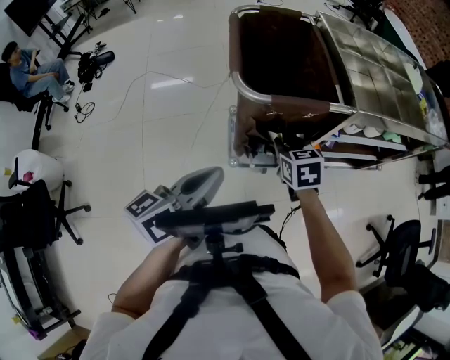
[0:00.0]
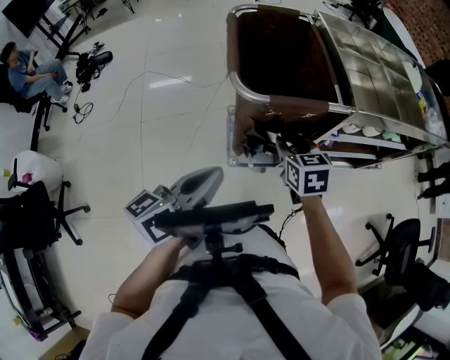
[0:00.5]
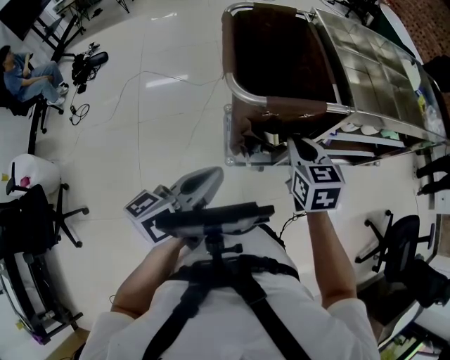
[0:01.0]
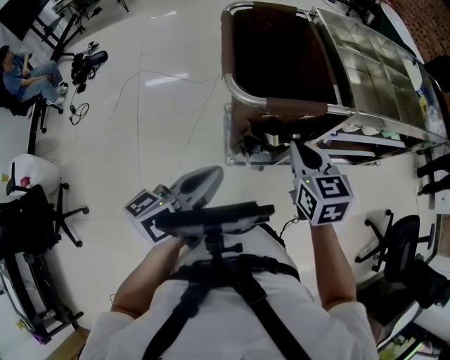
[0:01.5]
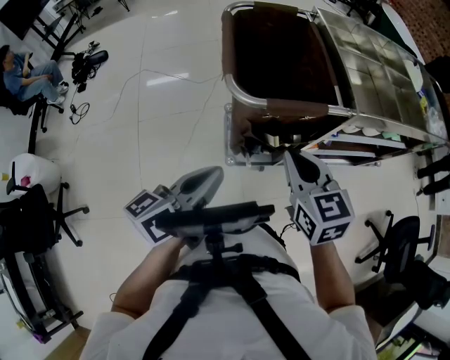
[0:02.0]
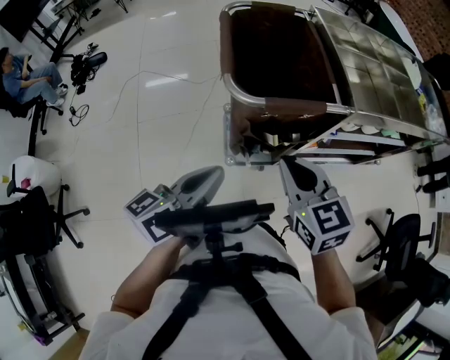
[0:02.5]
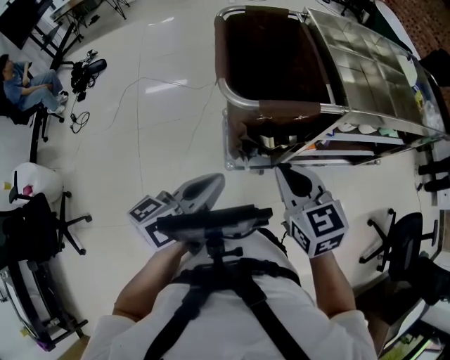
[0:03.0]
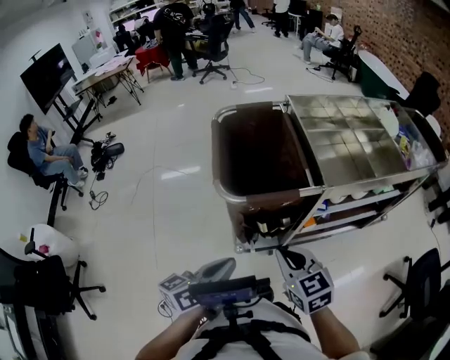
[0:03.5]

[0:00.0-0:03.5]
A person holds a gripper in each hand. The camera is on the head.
0:00.0 to 0:02.0: The right gripper moves upward and backward, some 15 cm, and closes its fingers.
0:02.0 to 0:03.5: The right gripper moves some 5 cm, while the left gripper shifts some 5 cm to the right.

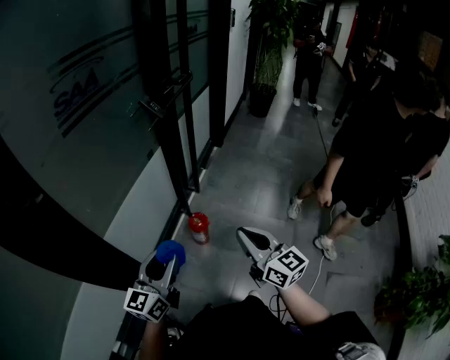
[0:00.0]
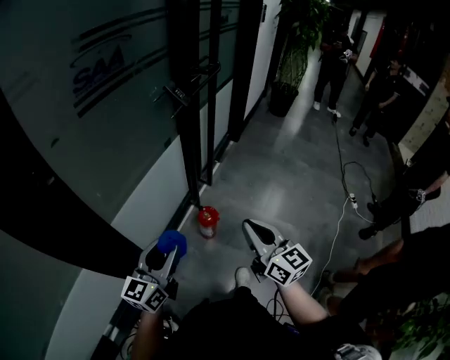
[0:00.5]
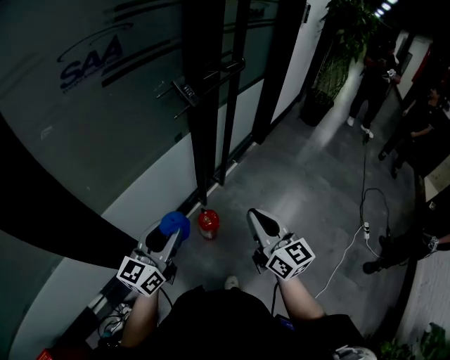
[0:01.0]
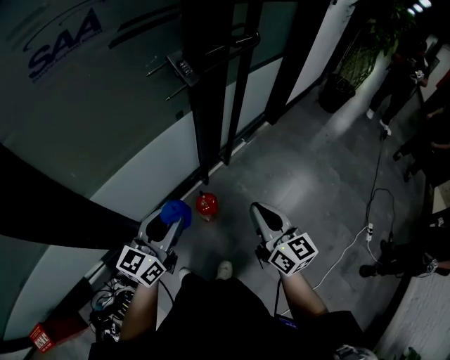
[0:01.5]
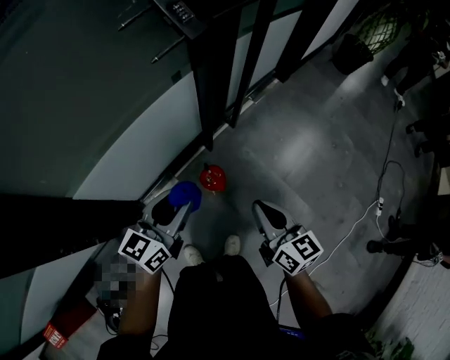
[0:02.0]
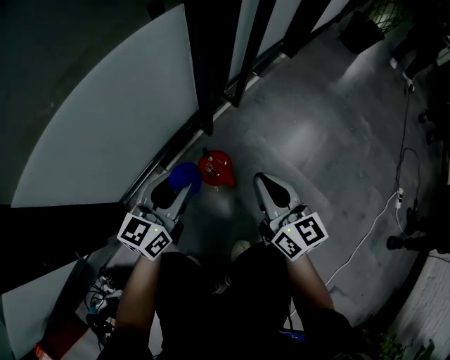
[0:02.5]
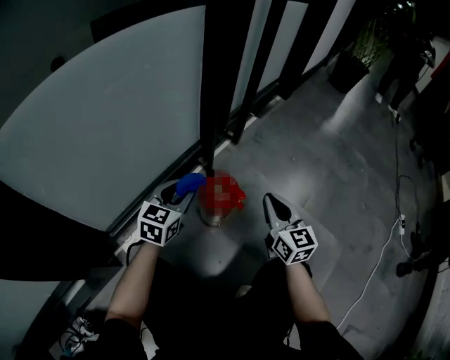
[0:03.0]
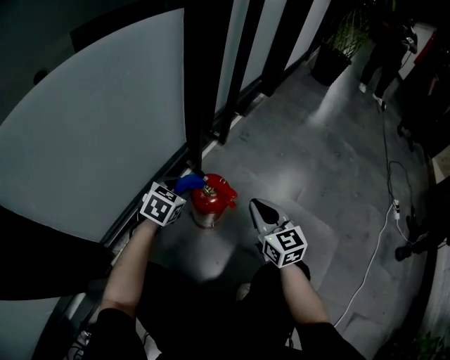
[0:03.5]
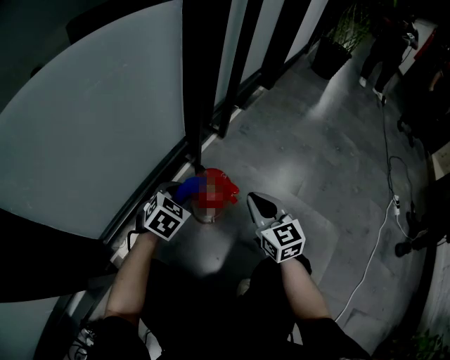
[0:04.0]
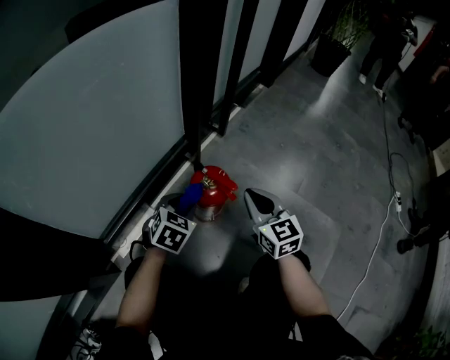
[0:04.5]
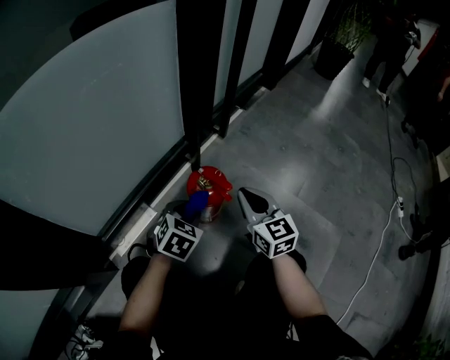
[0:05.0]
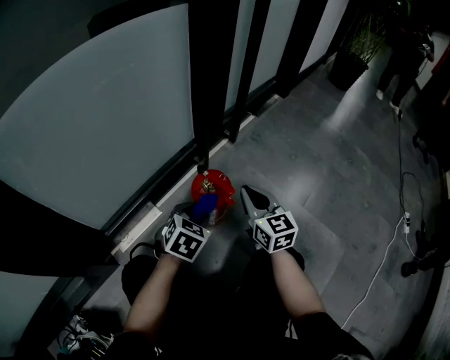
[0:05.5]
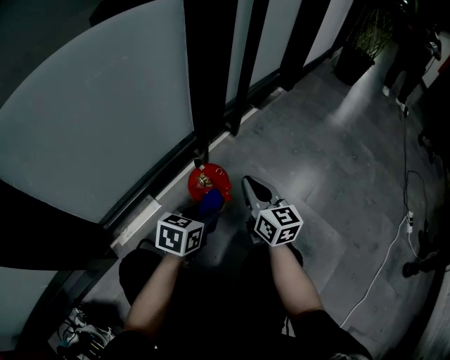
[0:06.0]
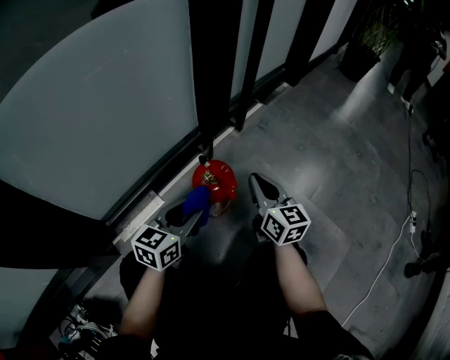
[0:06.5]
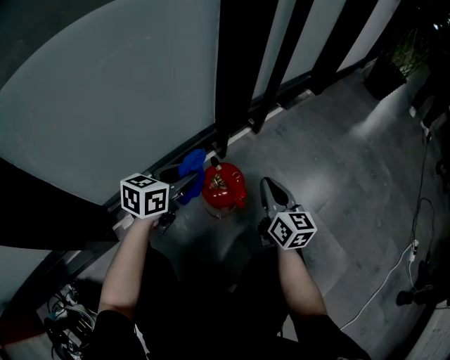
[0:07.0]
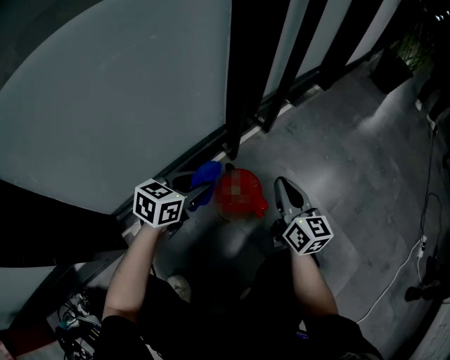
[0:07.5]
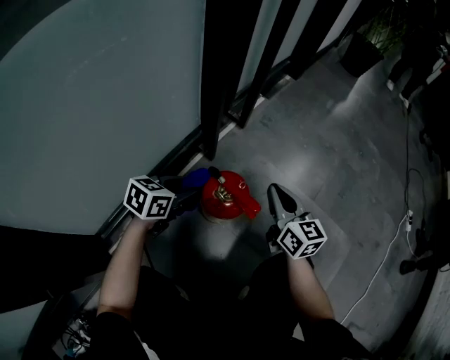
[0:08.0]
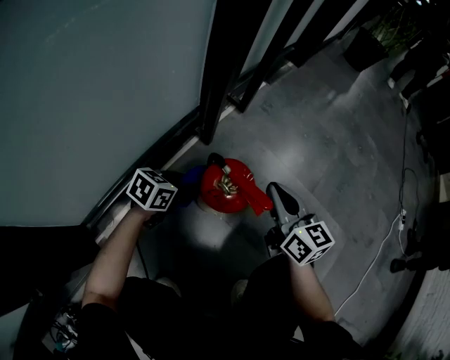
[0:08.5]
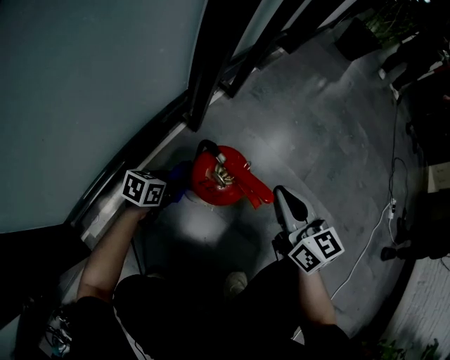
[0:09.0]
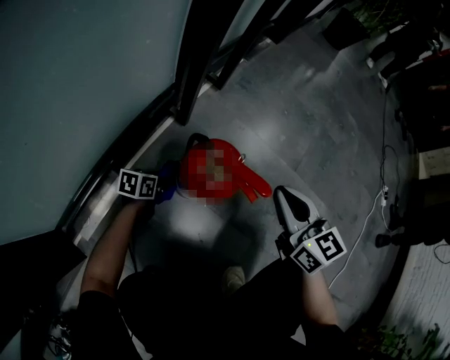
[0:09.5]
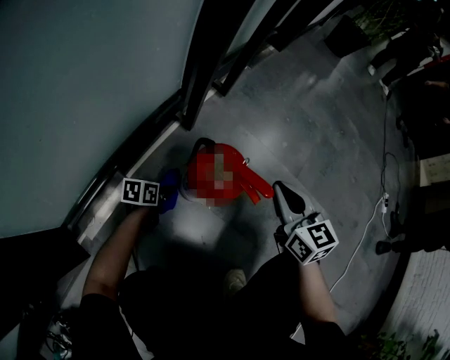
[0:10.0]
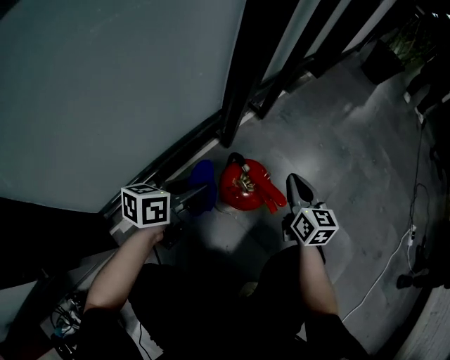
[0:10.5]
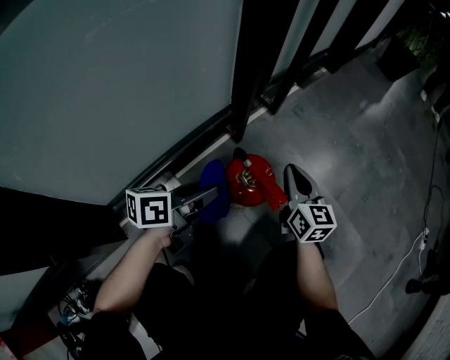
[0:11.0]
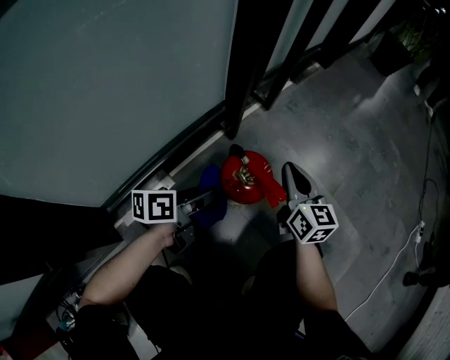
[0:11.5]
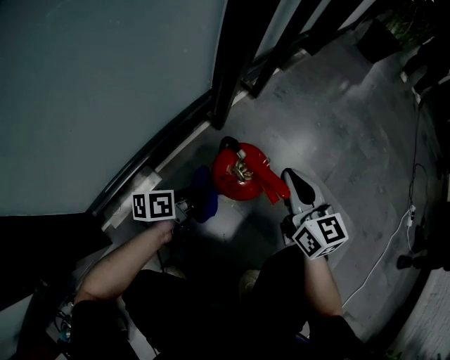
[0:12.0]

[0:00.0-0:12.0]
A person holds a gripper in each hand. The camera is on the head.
0:00.0 to 0:02.0: Both grippers move forward and downward, roughly 35 cm. The right gripper changes its angle by about 20 degrees.
0:02.0 to 0:04.0: Both grippers move downward, about 50 cm. The right gripper swivels some 30 degrees, while the left gripper angles its fingers downward, by approximately 40 degrees.
0:04.0 to 0:06.0: The left gripper moves to the right and backward, approximately 10 cm, and changes its angle by roughly 40 degrees.
0:06.0 to 0:08.0: The left gripper travels to the left and forward by some 15 cm. The right gripper shifts by roughly 5 cm.
0:08.0 to 0:10.0: The left gripper travels downward by about 25 cm, and turns by about 30 degrees.
0:10.0 to 0:12.0: The left gripper heads upward, covering roughly 15 cm, and turns by approximately 20 degrees.

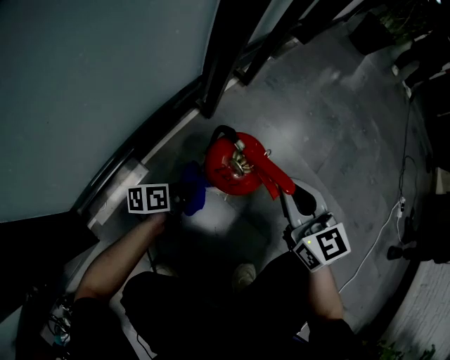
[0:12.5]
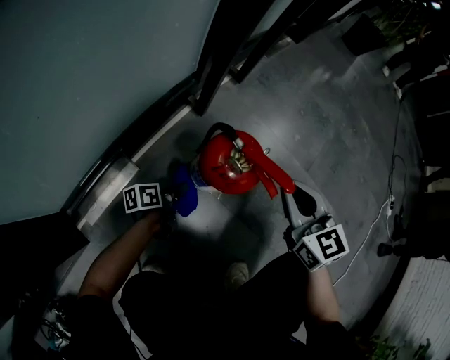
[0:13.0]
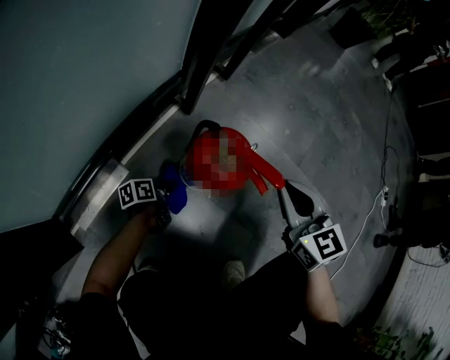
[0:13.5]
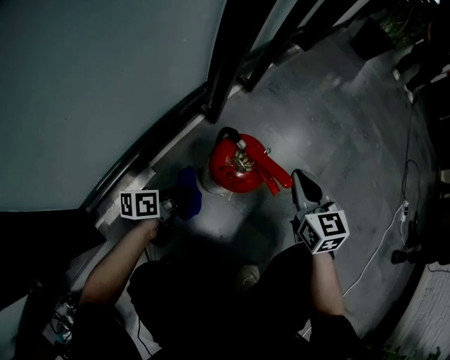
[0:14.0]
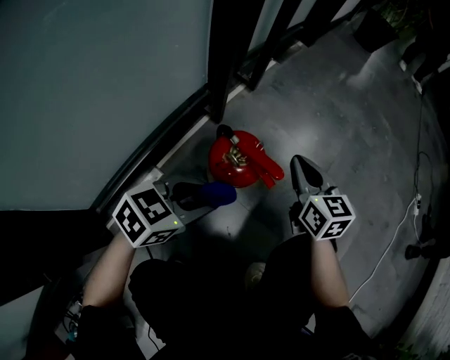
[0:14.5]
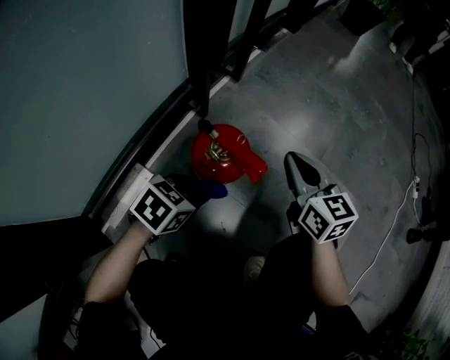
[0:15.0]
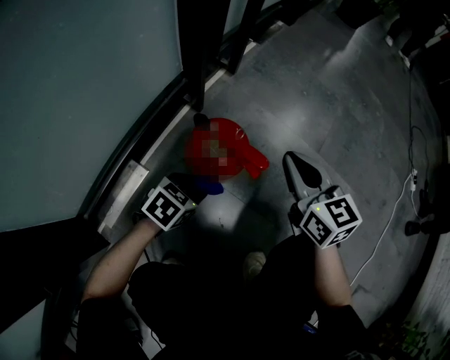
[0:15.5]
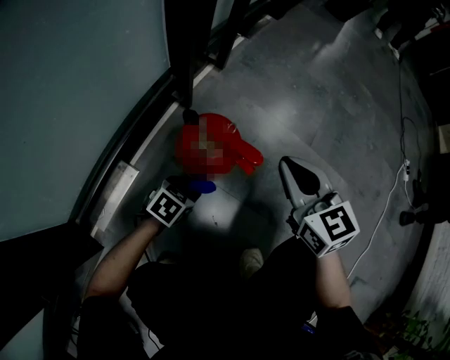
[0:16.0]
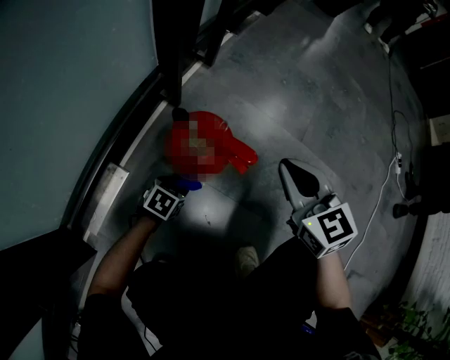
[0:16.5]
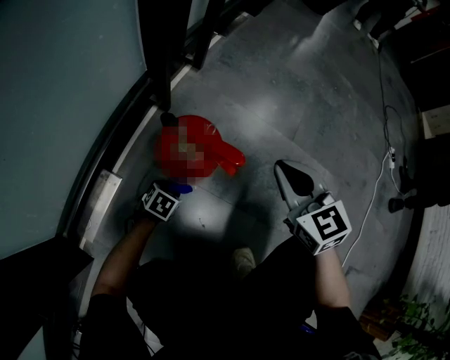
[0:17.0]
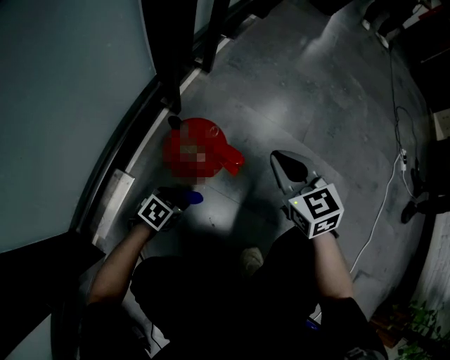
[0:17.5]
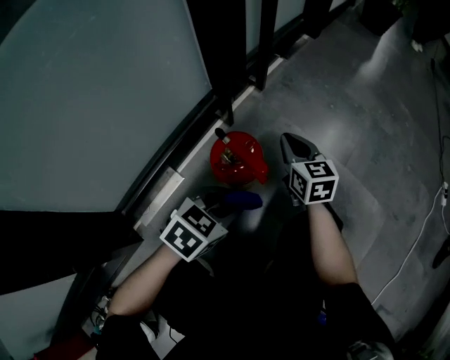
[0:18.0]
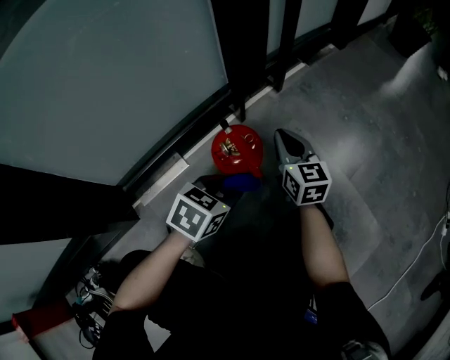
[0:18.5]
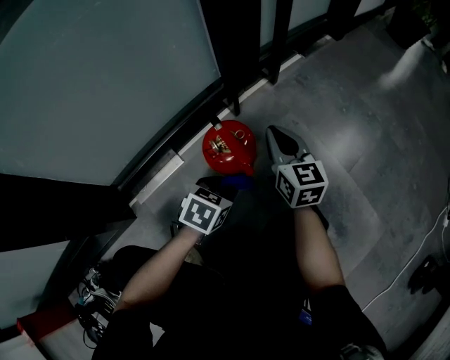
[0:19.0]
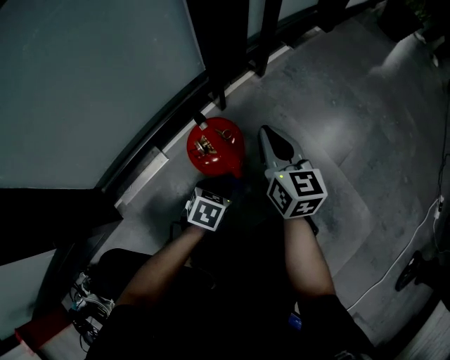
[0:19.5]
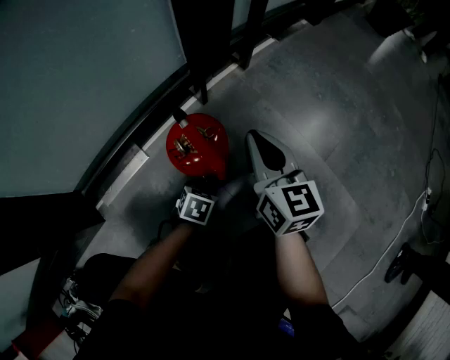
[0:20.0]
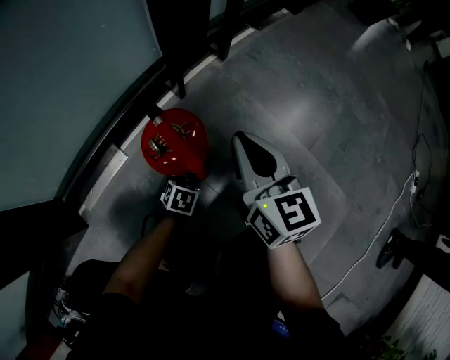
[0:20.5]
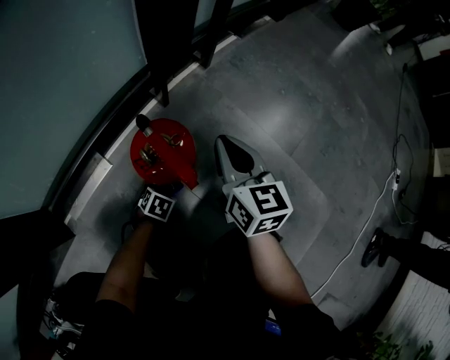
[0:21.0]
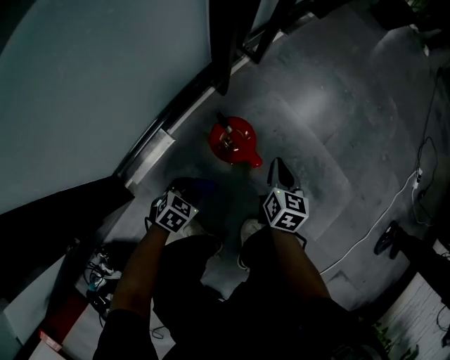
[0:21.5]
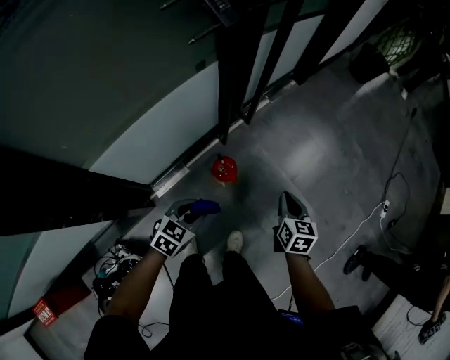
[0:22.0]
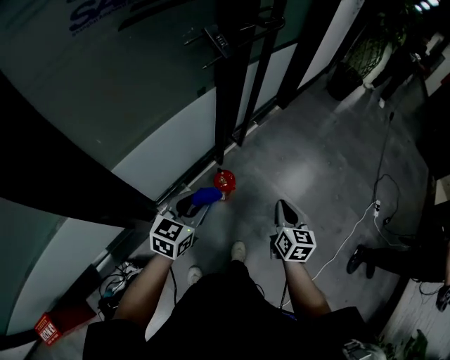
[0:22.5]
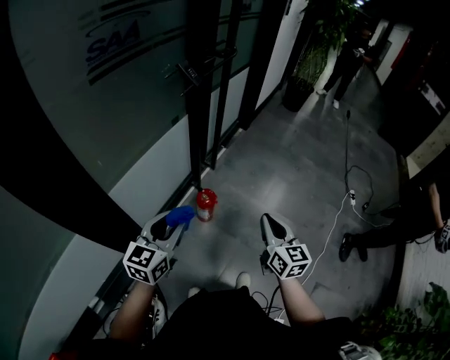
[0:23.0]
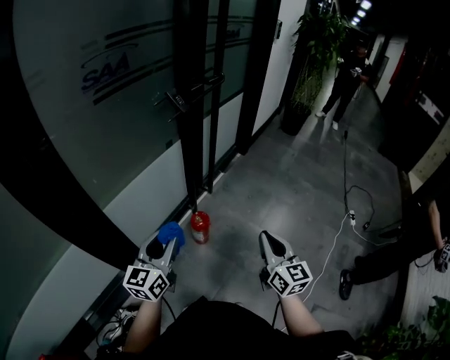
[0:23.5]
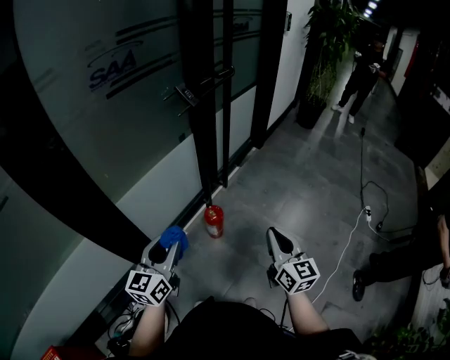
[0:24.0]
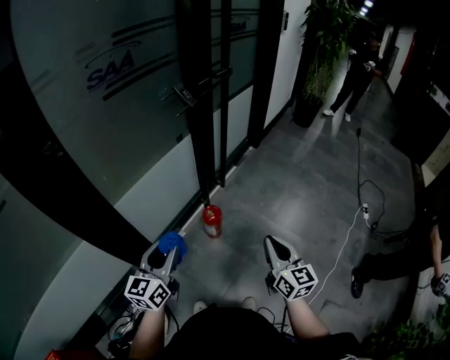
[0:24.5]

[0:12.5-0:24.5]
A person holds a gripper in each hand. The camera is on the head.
0:12.5 to 0:14.5: The right gripper heads forward, covering roughly 5 cm, while the left gripper is displaced upward by some 20 cm, and twists roughly 60 degrees clockwise, seen from behind.
0:14.5 to 0:16.5: The left gripper travels downward by some 30 cm, and swivels roughly 30 degrees. Meanwhile the right gripper goes approximately 5 cm backward.
0:16.5 to 0:18.5: The right gripper goes approximately 15 cm forward and to the left. Meanwhile the left gripper goes some 25 cm upward, and rotates some 20 degrees.
0:18.5 to 0:20.5: The left gripper goes some 25 cm downward. The right gripper changes place by some 5 cm.
0:20.5 to 0:22.5: The left gripper heads upward, covering roughly 90 cm, and tilts its fingers approximately 40 degrees upward. The right gripper is displaced upward and backward by some 50 cm.
0:22.5 to 0:24.5: Both grippers travel together backward and upward, some 25 cm. The left gripper swivels roughly 20 degrees.
